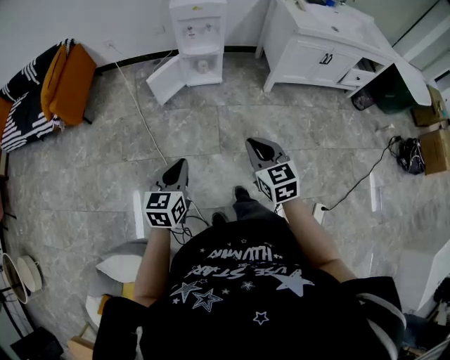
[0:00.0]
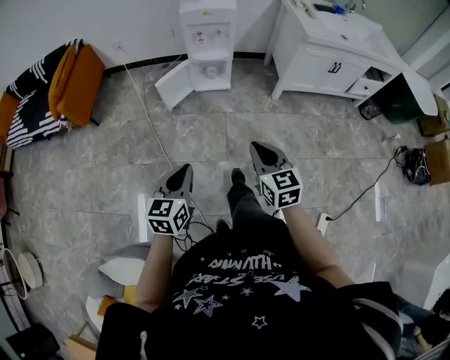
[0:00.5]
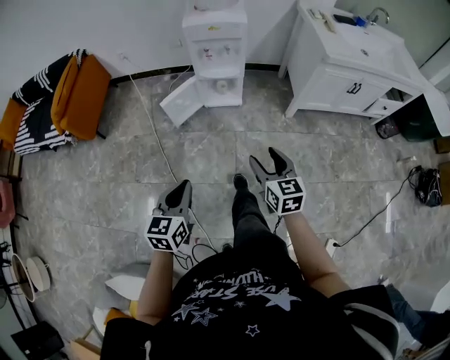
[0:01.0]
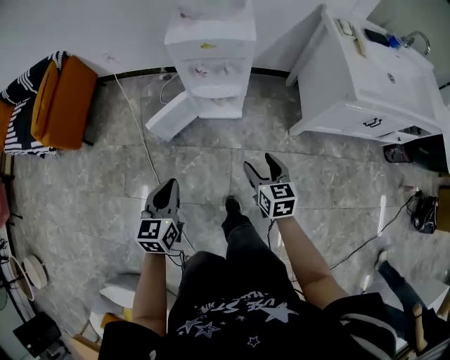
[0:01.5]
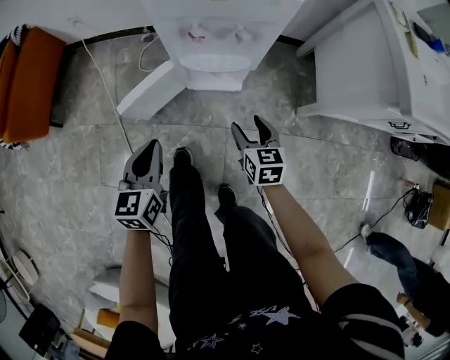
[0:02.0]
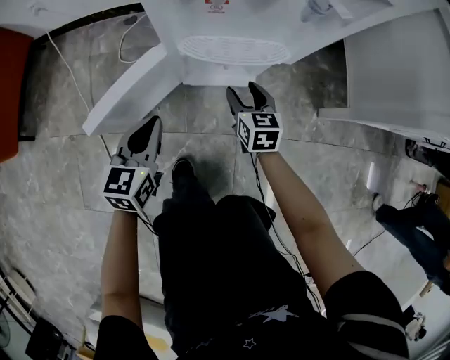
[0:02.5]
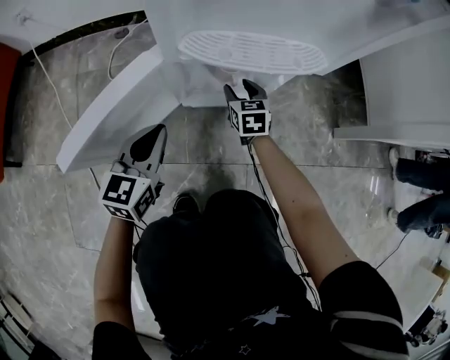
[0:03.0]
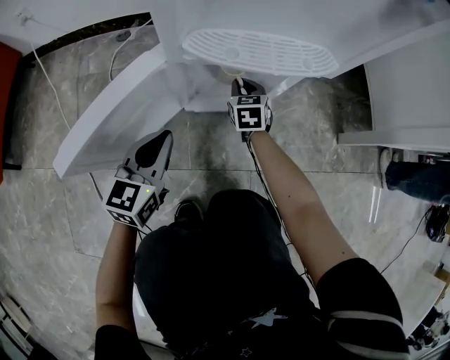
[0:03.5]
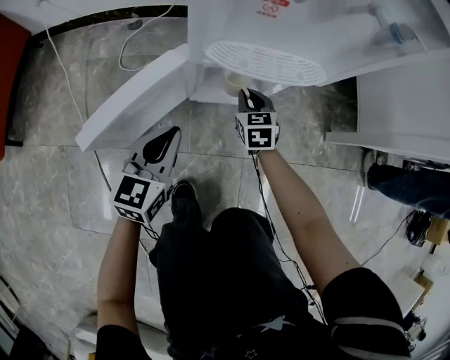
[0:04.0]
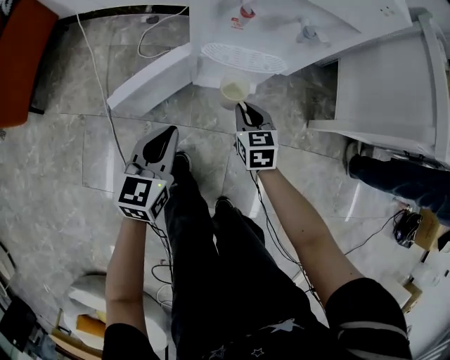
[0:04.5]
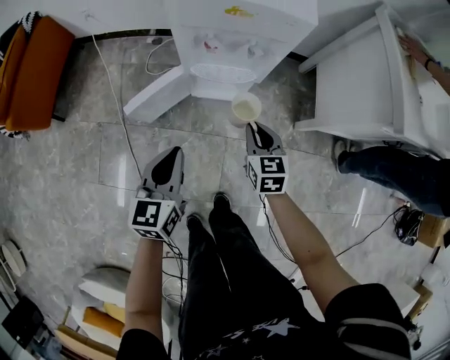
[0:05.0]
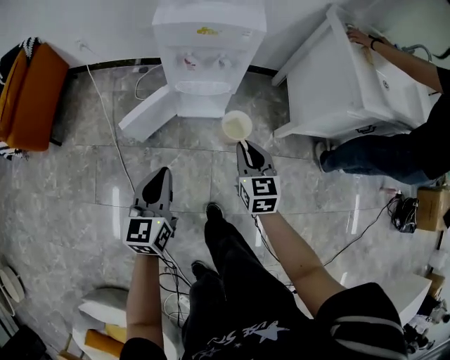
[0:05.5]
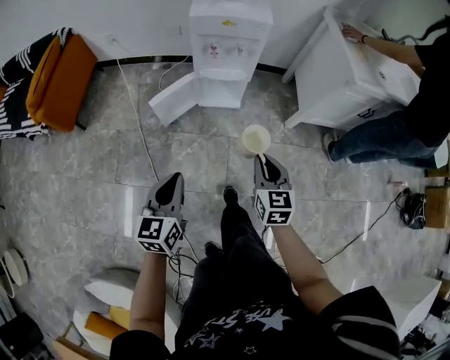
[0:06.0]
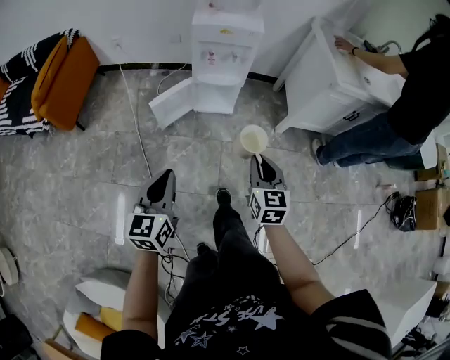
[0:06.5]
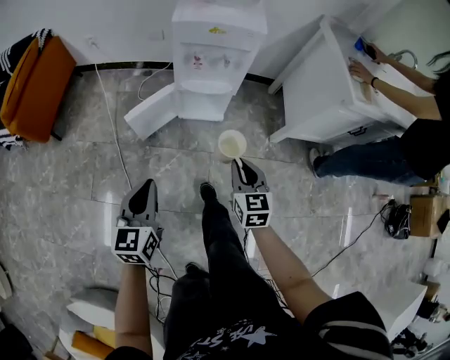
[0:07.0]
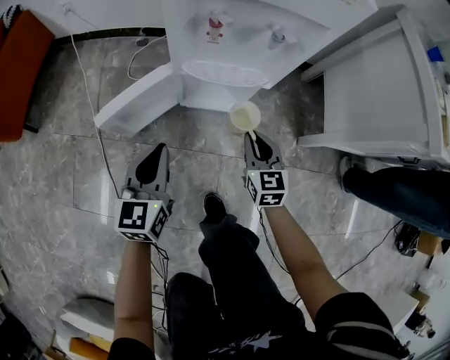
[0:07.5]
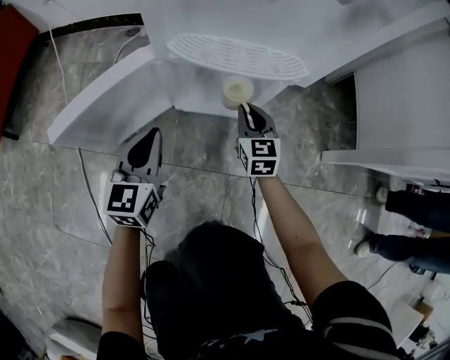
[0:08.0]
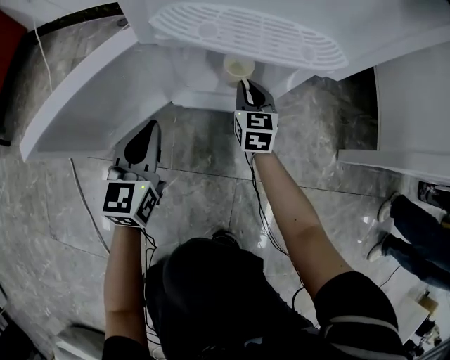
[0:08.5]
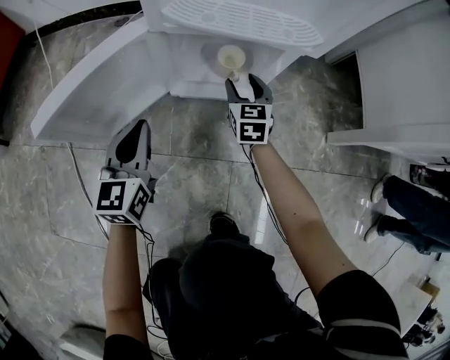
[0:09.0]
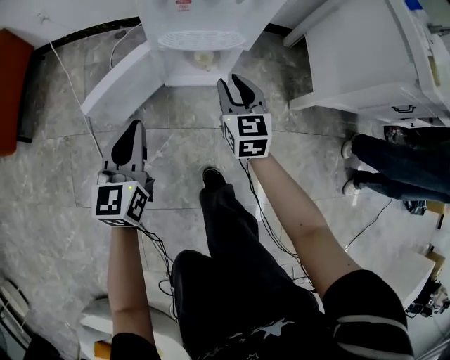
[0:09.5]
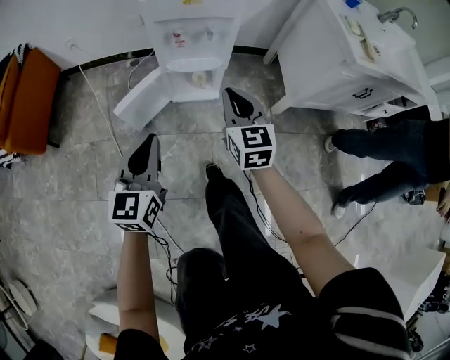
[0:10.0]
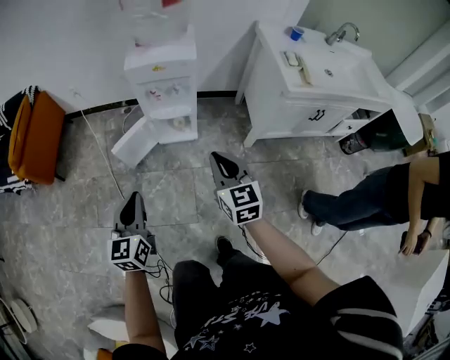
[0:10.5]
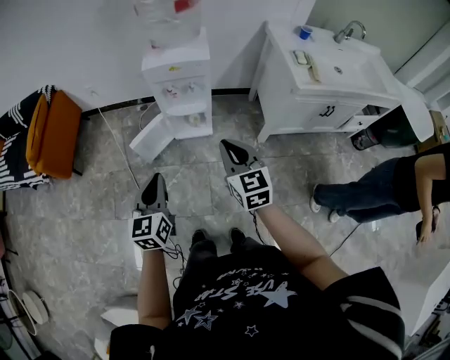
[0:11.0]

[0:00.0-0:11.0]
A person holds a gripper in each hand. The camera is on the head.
0:00.0 to 0:02.0: The two grippers travel together, forward, some 60 cm. The right gripper shifts about 35 cm downward, and opens its fingers.
0:02.0 to 0:03.5: The two grippers go roughly 40 cm downward and forward. The right gripper closes its fingers; the left gripper changes its angle by roughly 20 degrees.
0:03.5 to 0:05.5: Both grippers travel together upward and backward, some 60 cm.
0:05.5 to 0:07.5: Both grippers move downward and forward, some 30 cm.
0:07.5 to 0:09.0: The left gripper shifts about 25 cm downward; the right gripper moves downward and forward, roughly 30 cm, and opens up.
0:09.0 to 0:11.0: Both grippers move upward and backward, roughly 80 cm. The right gripper closes.

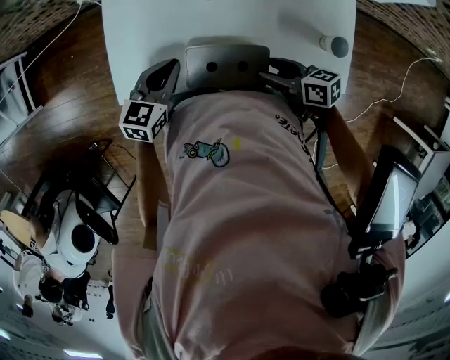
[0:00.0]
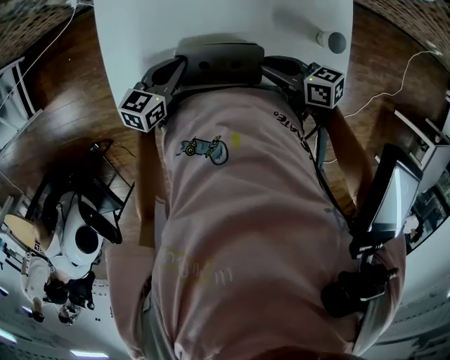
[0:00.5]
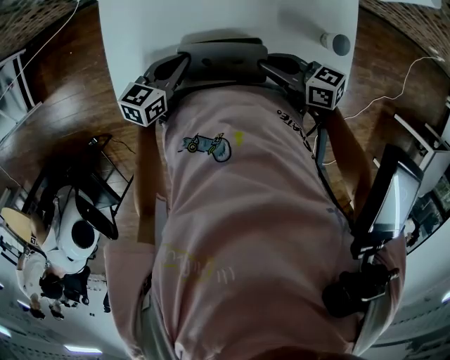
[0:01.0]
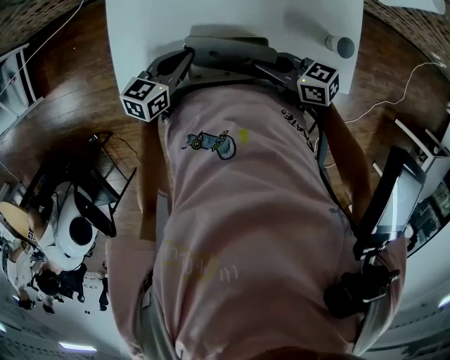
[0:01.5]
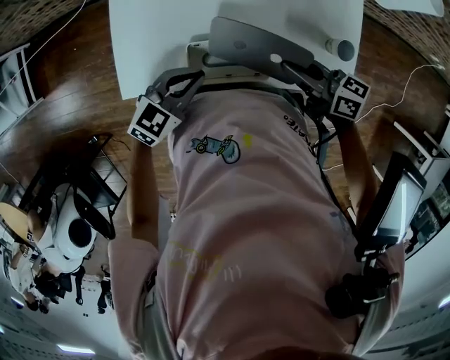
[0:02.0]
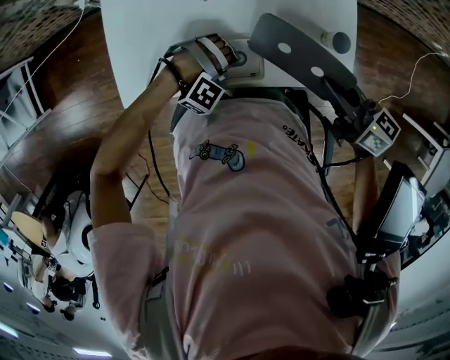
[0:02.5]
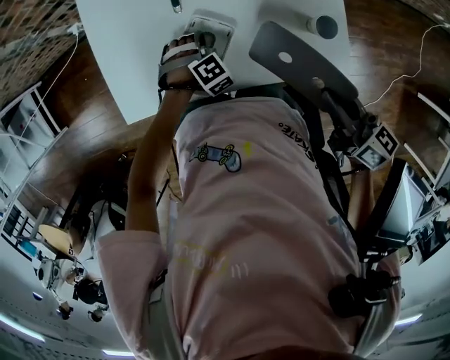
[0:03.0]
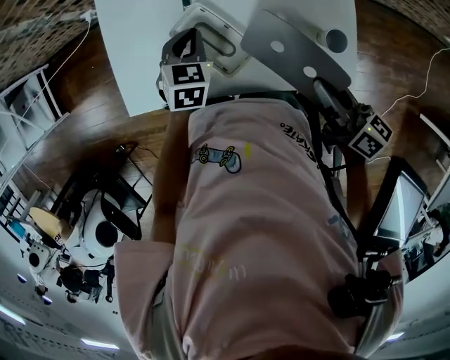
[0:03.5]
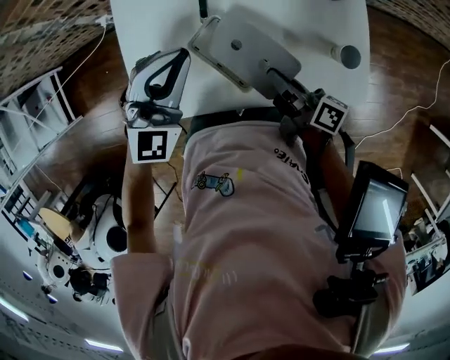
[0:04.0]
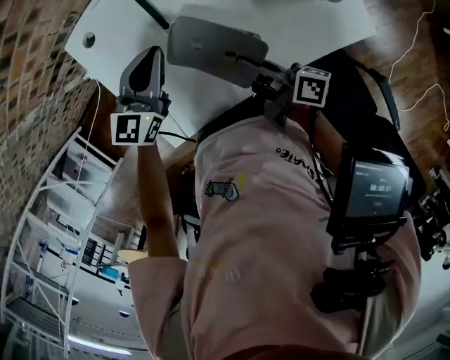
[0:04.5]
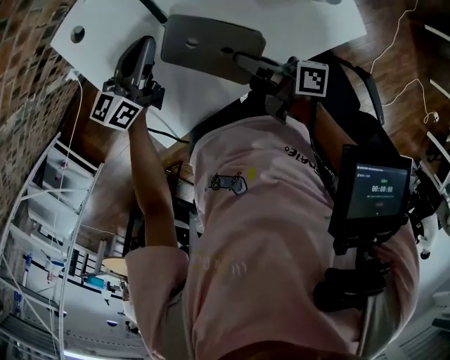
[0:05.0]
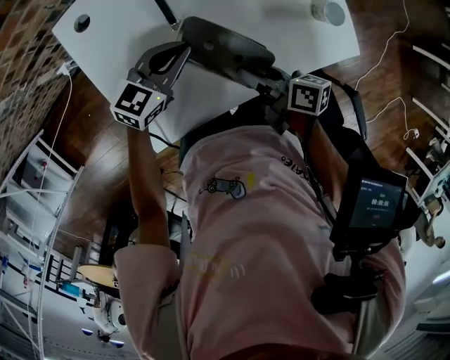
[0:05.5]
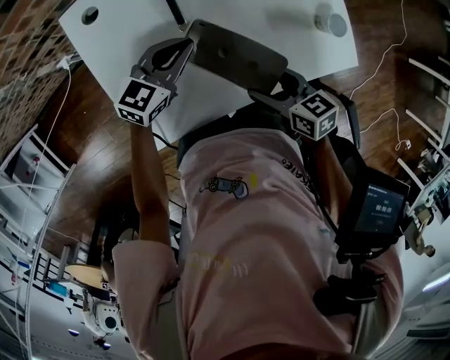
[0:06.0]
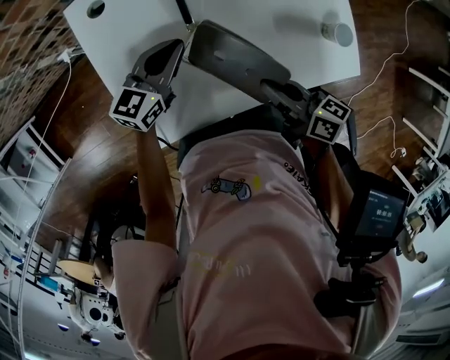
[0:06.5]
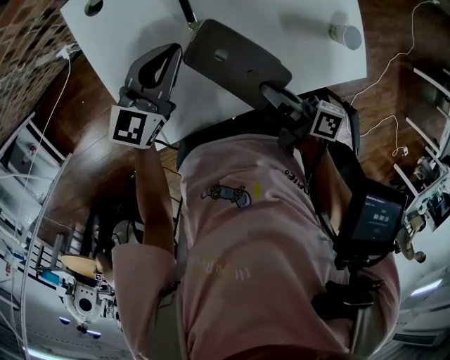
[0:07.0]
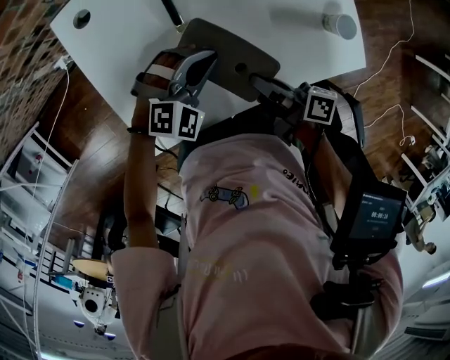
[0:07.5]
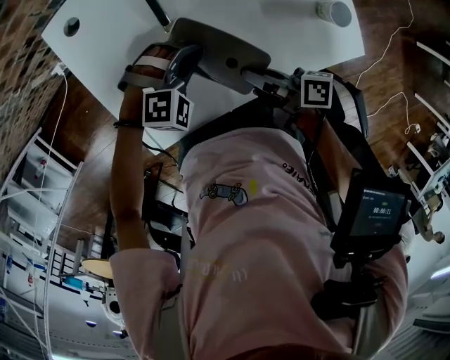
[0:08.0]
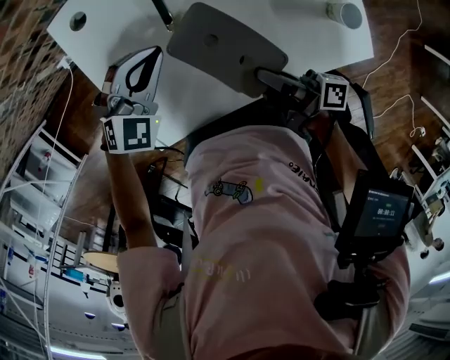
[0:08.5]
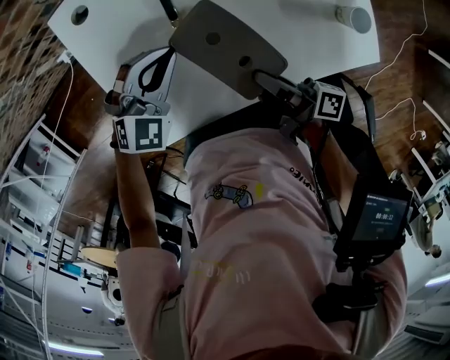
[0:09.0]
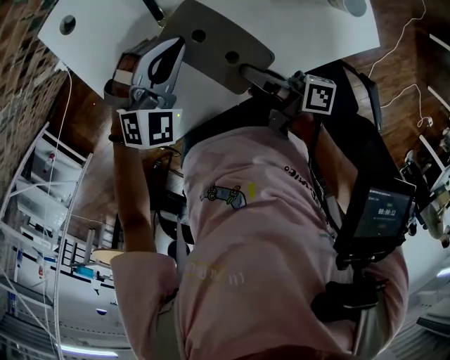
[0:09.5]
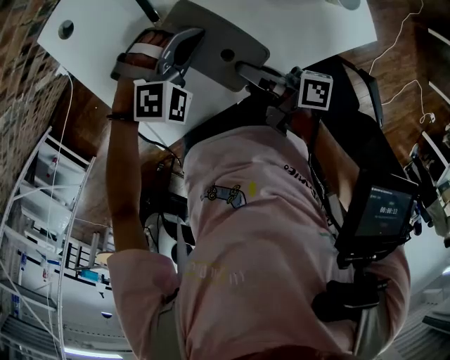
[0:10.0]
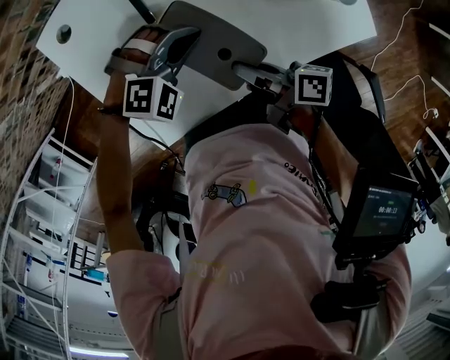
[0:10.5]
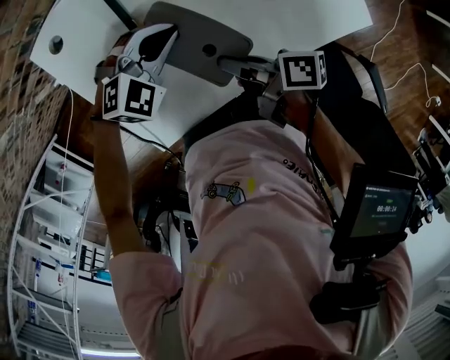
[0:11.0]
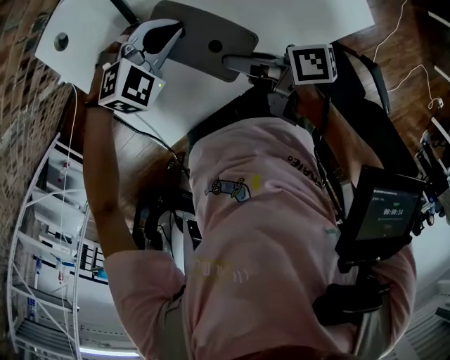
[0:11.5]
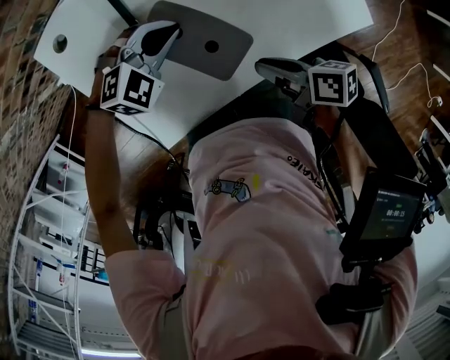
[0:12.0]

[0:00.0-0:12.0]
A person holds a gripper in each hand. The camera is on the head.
0:00.0 to 0:02.0: The left gripper heads backward, covering approximately 5 cm, and turns by about 20 degrees; the right gripper travels upward by roughly 10 cm, and closes up.
0:02.0 to 0:04.0: The left gripper is displaced upward by roughly 15 cm, and turns by roughly 50 degrees. The right gripper travels upward and back again, about 10 cm each way, and rotates some 40 degrees.
0:04.0 to 0:06.0: The left gripper shifts roughly 15 cm downward, and changes its angle by some 50 degrees. Meanwhile the right gripper shifts by roughly 5 cm, angles its fingers downward, by approximately 30 degrees, and opens.
0:06.0 to 0:08.0: The left gripper travels downward by roughly 5 cm, and twists approximately 60 degrees clockwise, seen from behind. The right gripper twists approximately 40 degrees clockwise, seen from behind, and closes its fingers.
0:08.0 to 0:10.0: The left gripper goes to the left and returns, approximately 10 cm each way.
0:10.0 to 0:12.0: The right gripper rotates roughly 30 degrees, while the left gripper moves about 5 cm.

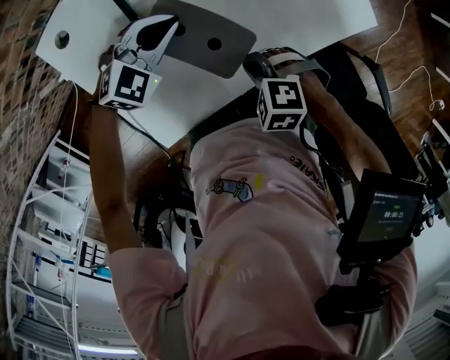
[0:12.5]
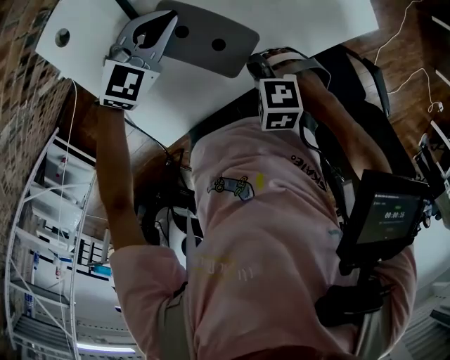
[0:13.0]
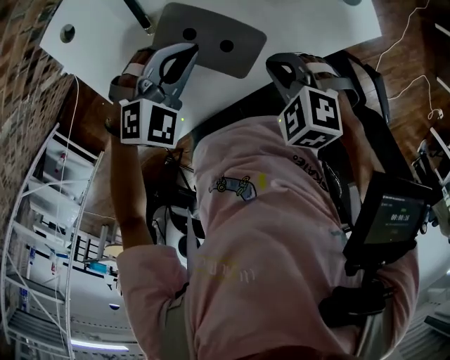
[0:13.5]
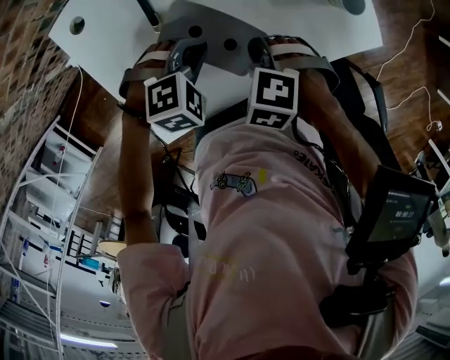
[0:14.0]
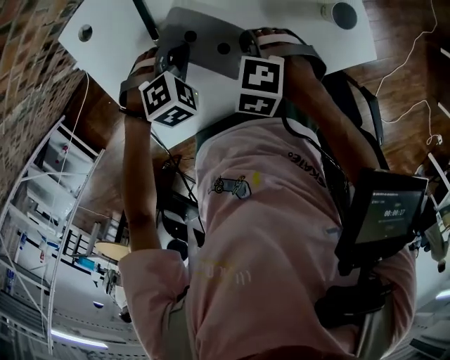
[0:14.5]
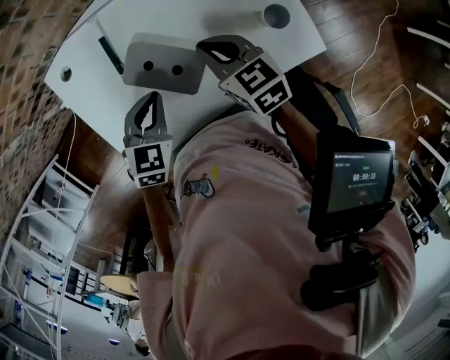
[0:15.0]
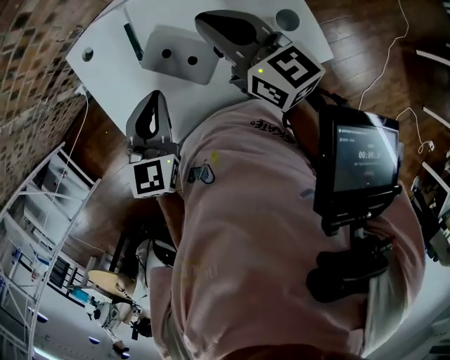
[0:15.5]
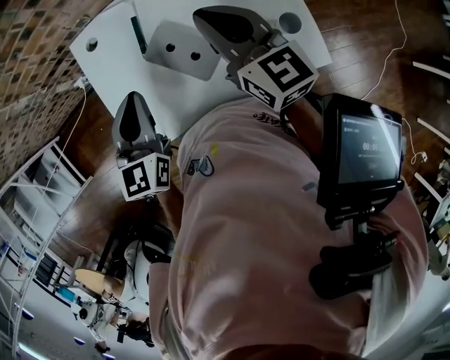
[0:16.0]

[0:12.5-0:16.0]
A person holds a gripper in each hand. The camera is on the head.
0:12.5 to 0:14.5: The left gripper tilts its fingers about 30 degrees downward; the right gripper changes place by approximately 10 cm.
0:14.5 to 0:16.0: The two grippers go approximately 25 cm upward. The left gripper tips its fingers upward by some 50 degrees, while the right gripper points its fingers some 70 degrees further upward.
